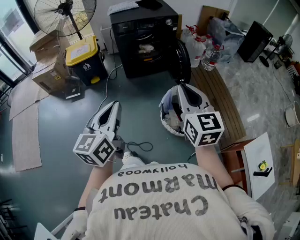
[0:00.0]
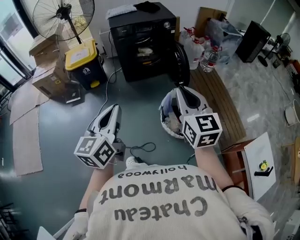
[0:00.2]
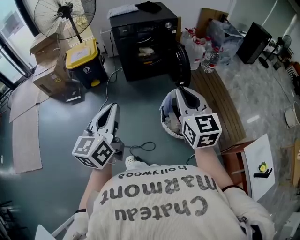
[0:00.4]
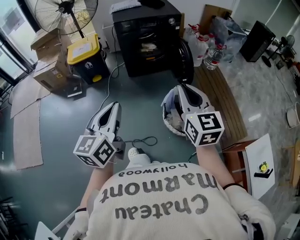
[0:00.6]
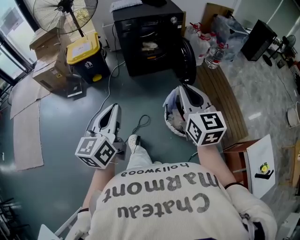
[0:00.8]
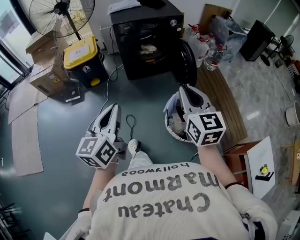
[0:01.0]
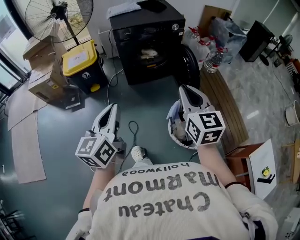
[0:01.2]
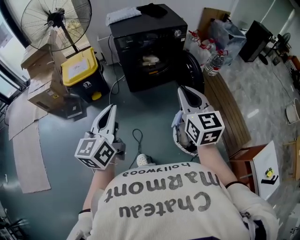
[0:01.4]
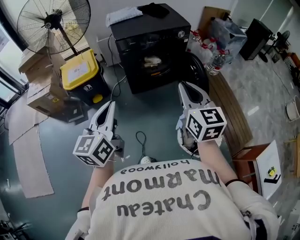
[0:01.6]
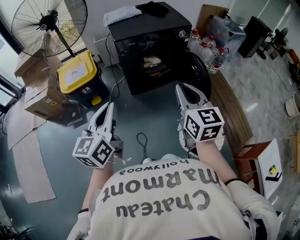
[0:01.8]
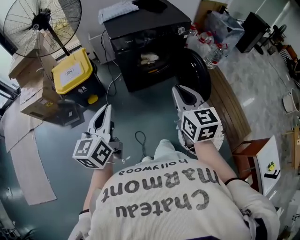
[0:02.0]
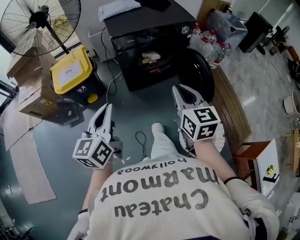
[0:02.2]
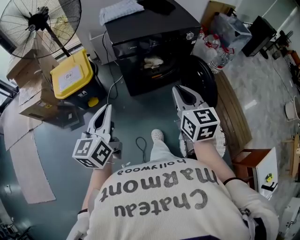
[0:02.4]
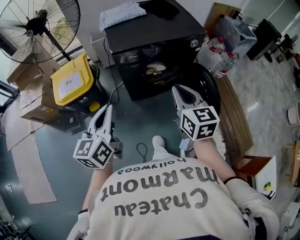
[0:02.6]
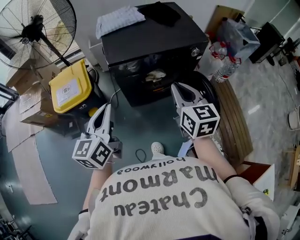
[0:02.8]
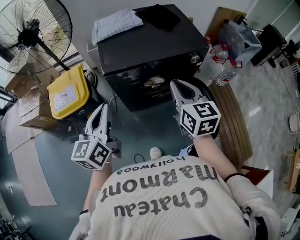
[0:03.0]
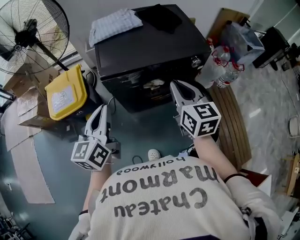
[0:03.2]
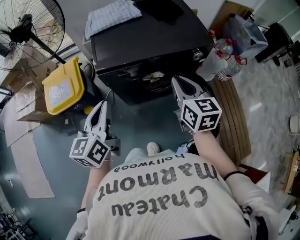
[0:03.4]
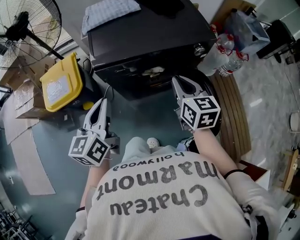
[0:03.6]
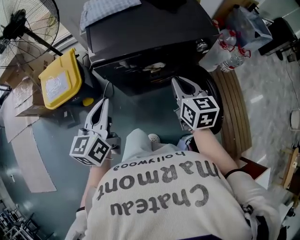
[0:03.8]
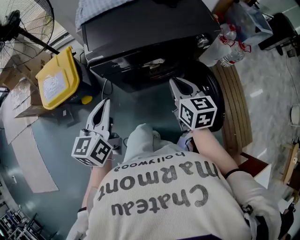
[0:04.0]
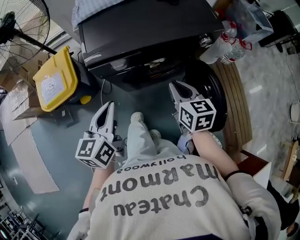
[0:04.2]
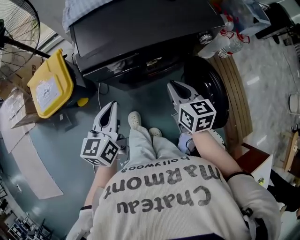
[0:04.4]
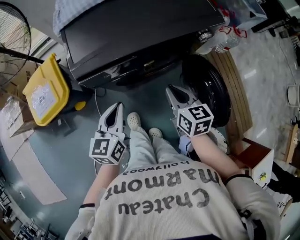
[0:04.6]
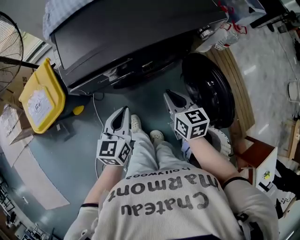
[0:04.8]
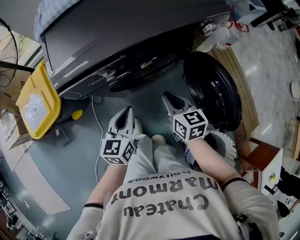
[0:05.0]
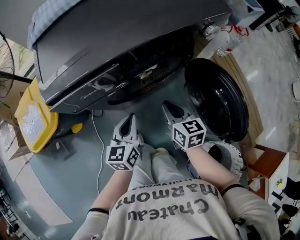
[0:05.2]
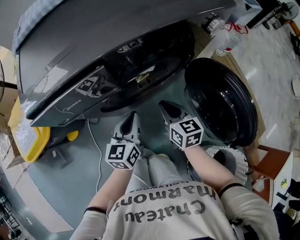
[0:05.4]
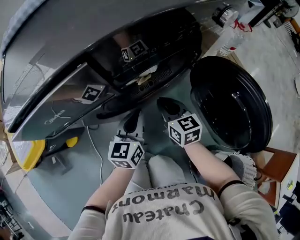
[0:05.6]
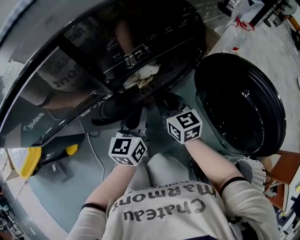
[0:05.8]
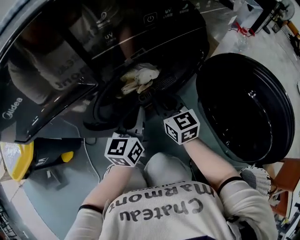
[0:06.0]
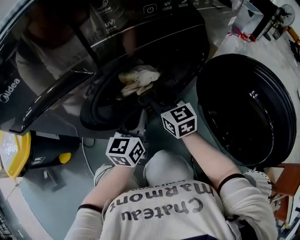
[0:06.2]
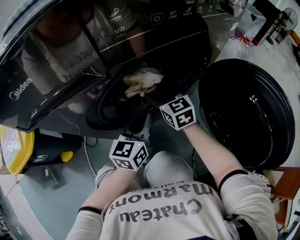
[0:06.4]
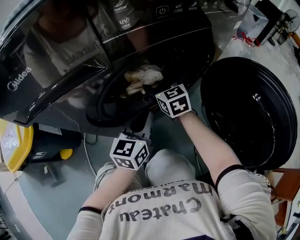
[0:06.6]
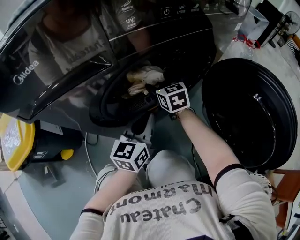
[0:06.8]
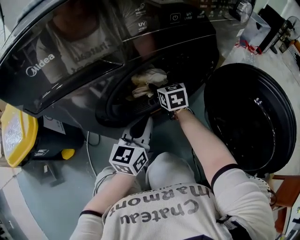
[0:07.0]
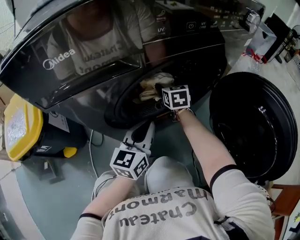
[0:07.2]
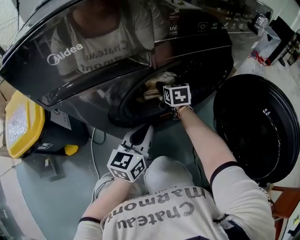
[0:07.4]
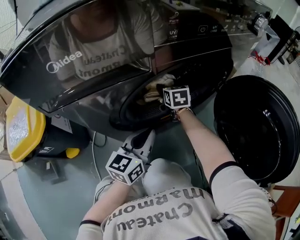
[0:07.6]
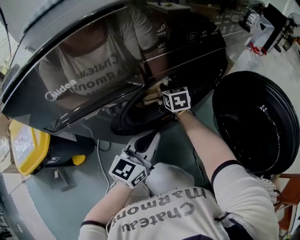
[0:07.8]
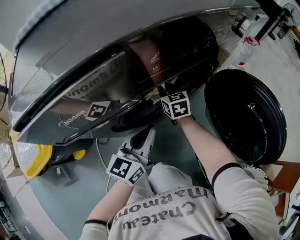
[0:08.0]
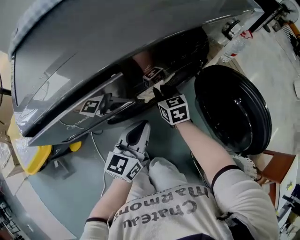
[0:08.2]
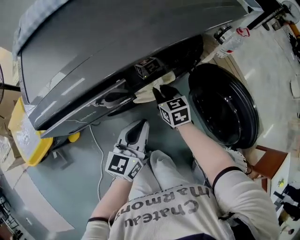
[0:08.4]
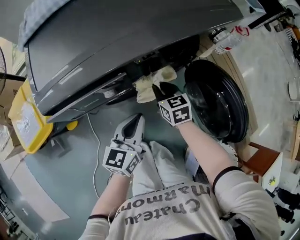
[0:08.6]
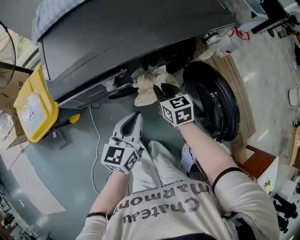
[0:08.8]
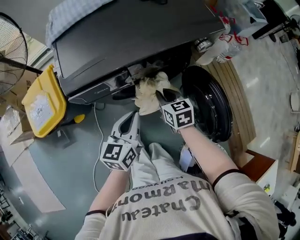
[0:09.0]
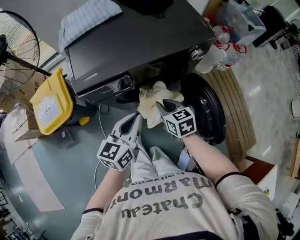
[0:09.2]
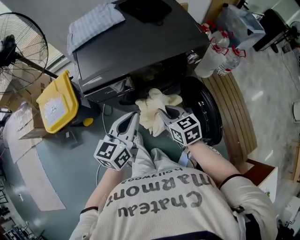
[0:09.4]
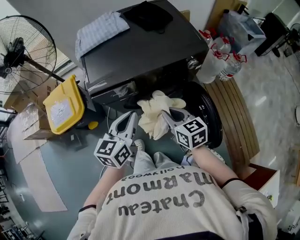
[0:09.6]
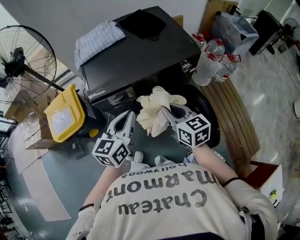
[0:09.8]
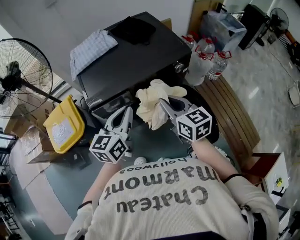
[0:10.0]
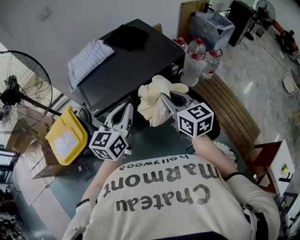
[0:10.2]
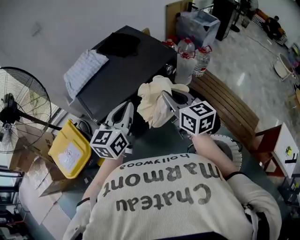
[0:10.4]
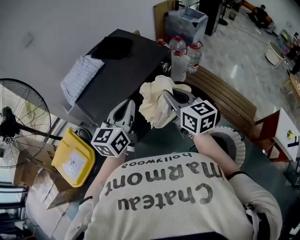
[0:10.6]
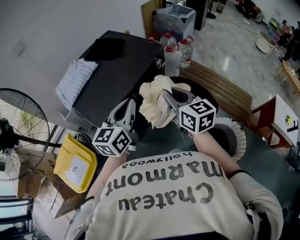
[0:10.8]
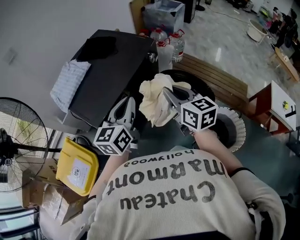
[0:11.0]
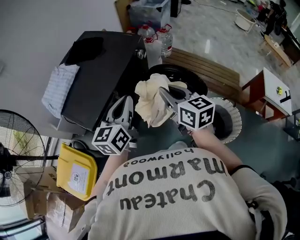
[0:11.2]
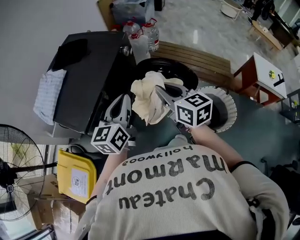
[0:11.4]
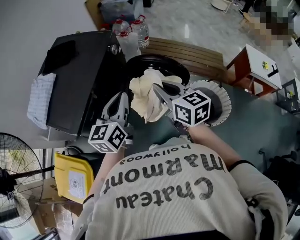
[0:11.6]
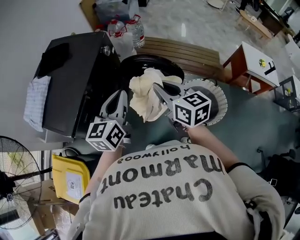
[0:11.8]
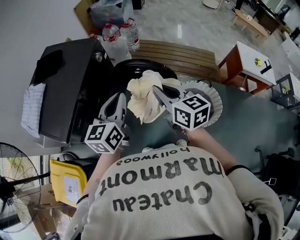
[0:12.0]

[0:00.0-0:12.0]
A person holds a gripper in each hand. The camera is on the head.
0:00.0 to 0:01.6: The two grippers go approximately 30 cm forward and to the left.
0:01.6 to 0:03.0: Both grippers travel together forward, some 35 cm.
0:03.0 to 0:04.4: The left gripper shifts approximately 15 cm downward and forward, while the right gripper goes roughly 20 cm downward.
0:04.4 to 0:06.0: The left gripper is displaced downward and forward by approximately 40 cm. The right gripper shifts roughly 35 cm downward, and swivels approximately 20 degrees.
0:06.0 to 0:07.6: The right gripper goes approximately 15 cm forward and downward, and opens. Meanwhile the left gripper moves backward, approximately 5 cm.
0:07.6 to 0:09.0: The left gripper is displaced upward by approximately 30 cm, while the right gripper moves upward and backward, roughly 35 cm, and closes its fingers.
0:09.0 to 0:10.4: Both grippers move upward, approximately 30 cm. The right gripper changes its angle by roughly 30 degrees. The left gripper swivels approximately 20 degrees.
0:10.4 to 0:12.0: The left gripper changes place by roughly 20 cm, and swivels approximately 30 degrees. The right gripper changes place by some 25 cm, and rotates roughly 30 degrees.

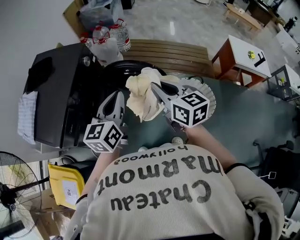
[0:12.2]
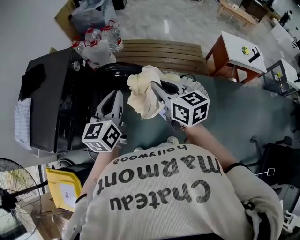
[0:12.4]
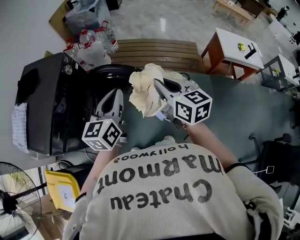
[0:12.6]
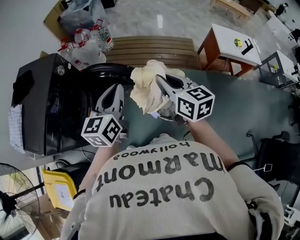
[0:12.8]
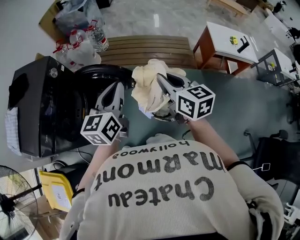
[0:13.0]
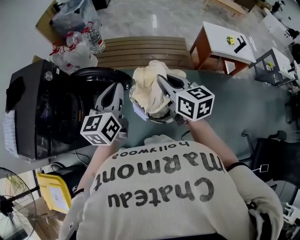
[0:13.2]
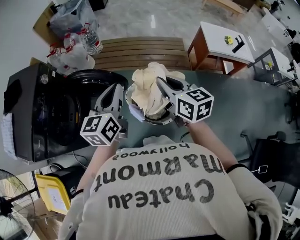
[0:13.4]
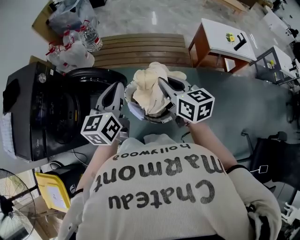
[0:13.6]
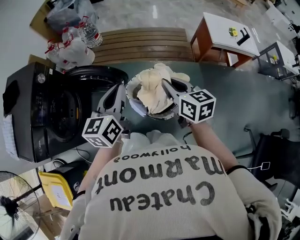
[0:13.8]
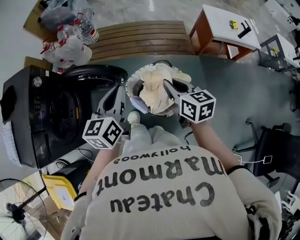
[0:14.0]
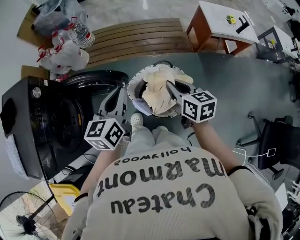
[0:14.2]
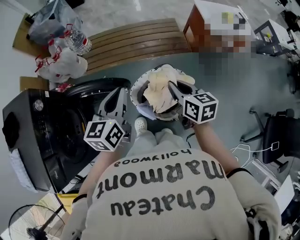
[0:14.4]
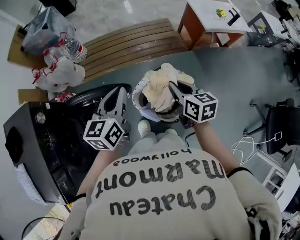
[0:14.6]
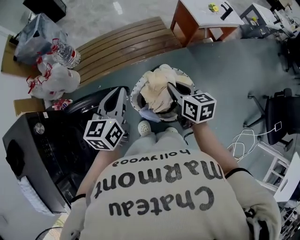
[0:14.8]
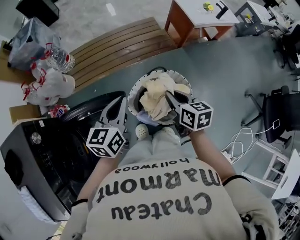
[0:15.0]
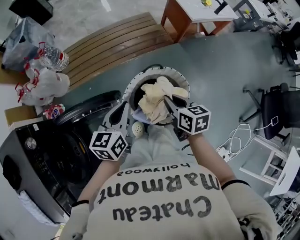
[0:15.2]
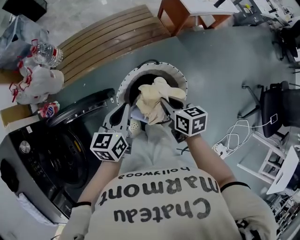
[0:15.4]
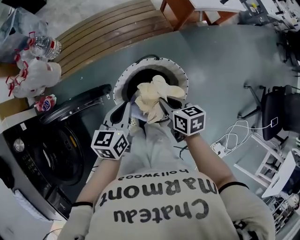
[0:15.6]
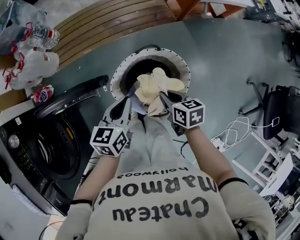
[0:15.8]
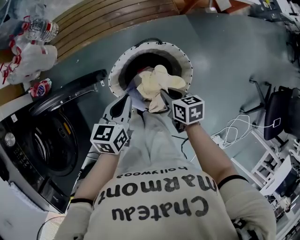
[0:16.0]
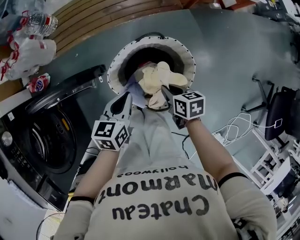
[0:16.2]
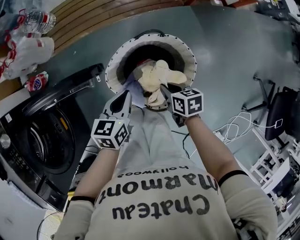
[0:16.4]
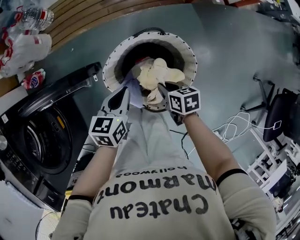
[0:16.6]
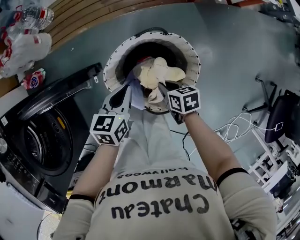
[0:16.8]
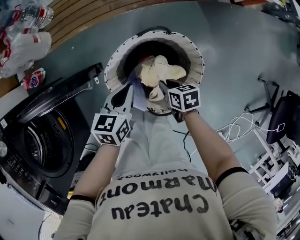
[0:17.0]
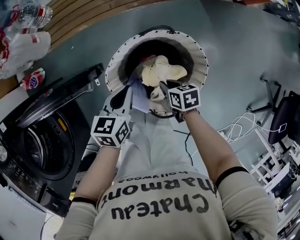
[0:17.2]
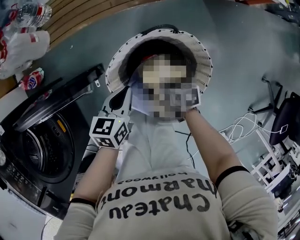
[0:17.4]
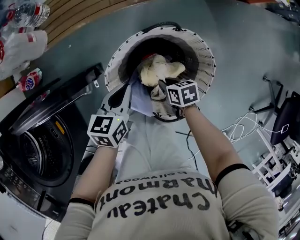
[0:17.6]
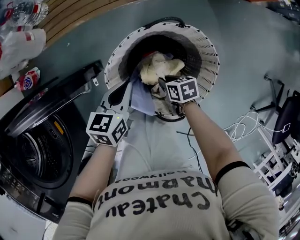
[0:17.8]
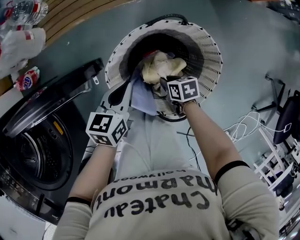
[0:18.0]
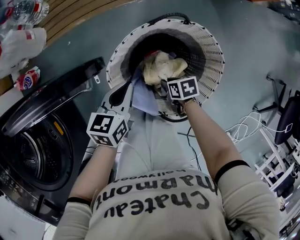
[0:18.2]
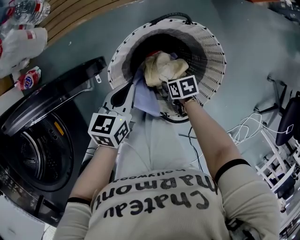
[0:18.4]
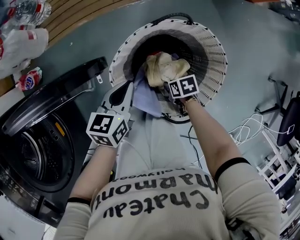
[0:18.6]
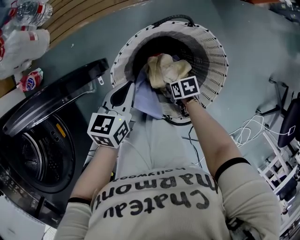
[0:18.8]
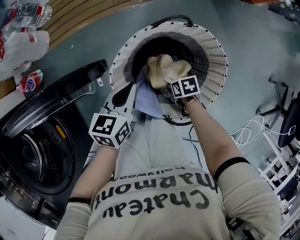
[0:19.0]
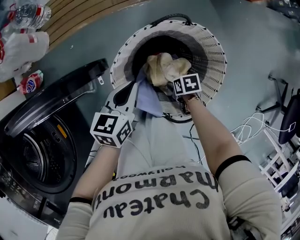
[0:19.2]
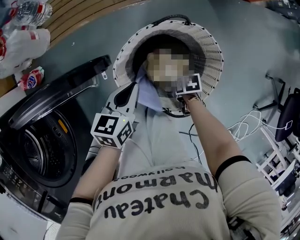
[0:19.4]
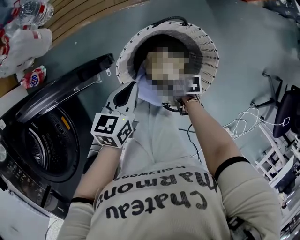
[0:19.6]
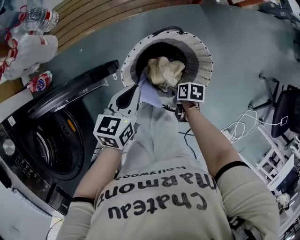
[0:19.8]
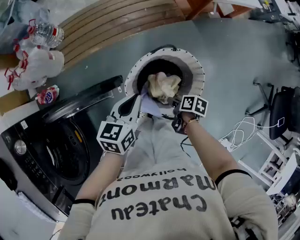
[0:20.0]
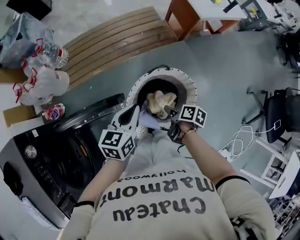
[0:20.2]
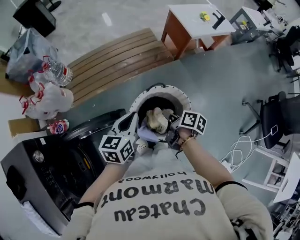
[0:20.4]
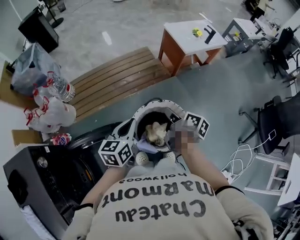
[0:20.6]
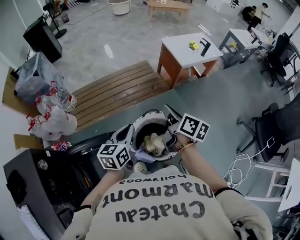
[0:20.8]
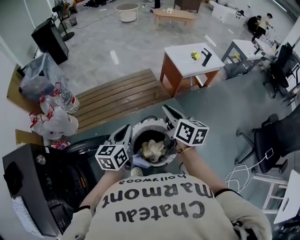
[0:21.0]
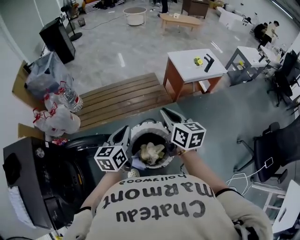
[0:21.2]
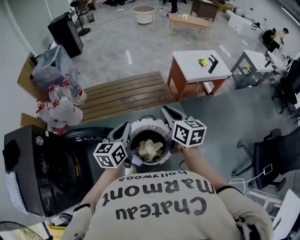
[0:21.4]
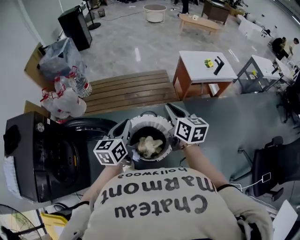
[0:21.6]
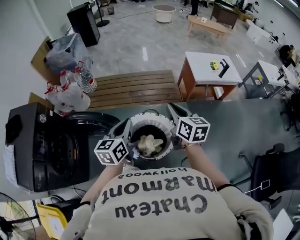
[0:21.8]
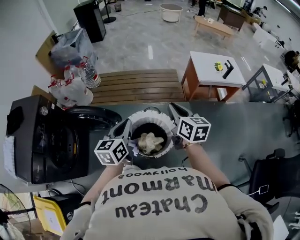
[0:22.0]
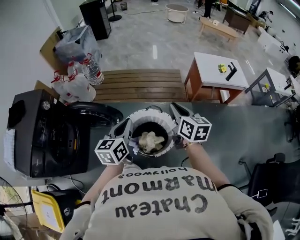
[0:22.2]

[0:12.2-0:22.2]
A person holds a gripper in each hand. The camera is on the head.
0:12.2 to 0:13.6: The two grippers go some 30 cm to the right.
0:13.6 to 0:15.0: The left gripper ends up roughly 15 cm from where it was, and changes its angle by roughly 30 degrees. Meanwhile the right gripper moves downward, approximately 15 cm, and turns by some 30 degrees.
0:15.0 to 0:16.4: Both grippers move downward, roughly 25 cm. The left gripper changes its angle by about 20 degrees, while the right gripper changes its angle by roughly 30 degrees.
0:16.4 to 0:18.0: The right gripper travels downward by approximately 20 cm. The left gripper moves downward, some 10 cm.
0:18.0 to 0:19.4: The right gripper changes place by roughly 5 cm, and opens its fingers.
0:19.4 to 0:20.8: The left gripper shifts approximately 30 cm upward, while the right gripper goes roughly 60 cm upward, angles its fingers upward, by approximately 50 degrees, and closes its fingers.
0:20.8 to 0:22.2: The left gripper travels backward and to the right by about 10 cm, and changes its angle by roughly 30 degrees; the right gripper is displaced to the right by approximately 10 cm, and changes its angle by roughly 40 degrees.

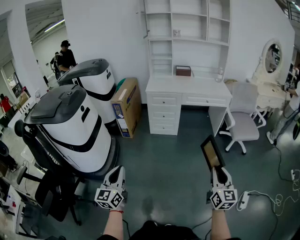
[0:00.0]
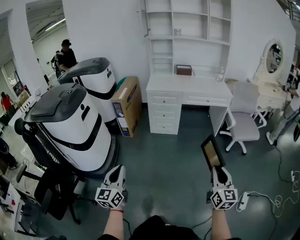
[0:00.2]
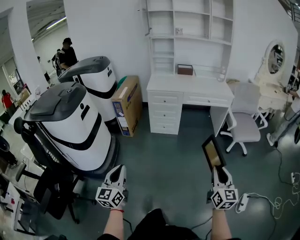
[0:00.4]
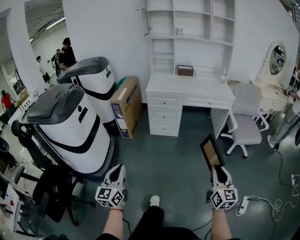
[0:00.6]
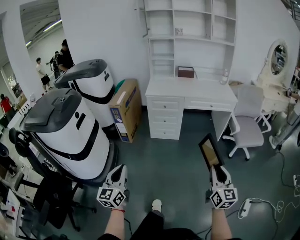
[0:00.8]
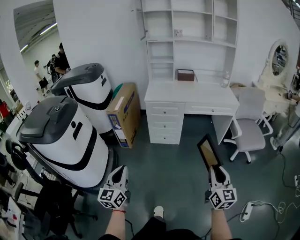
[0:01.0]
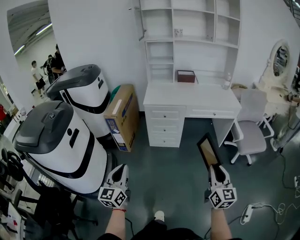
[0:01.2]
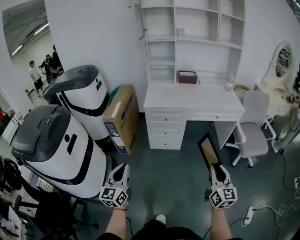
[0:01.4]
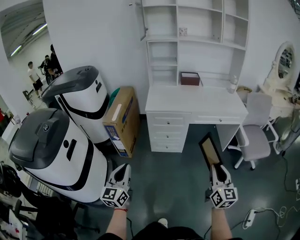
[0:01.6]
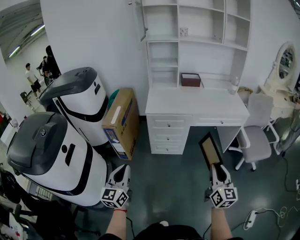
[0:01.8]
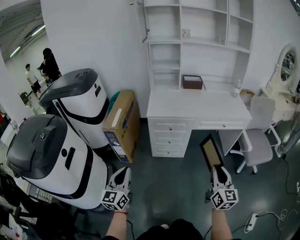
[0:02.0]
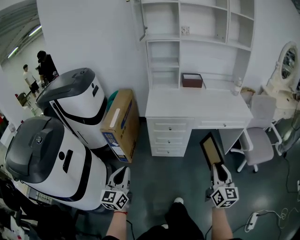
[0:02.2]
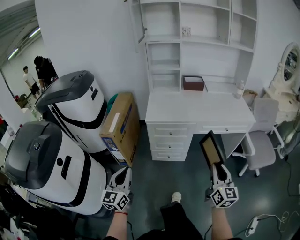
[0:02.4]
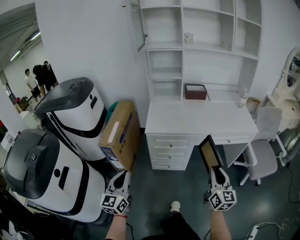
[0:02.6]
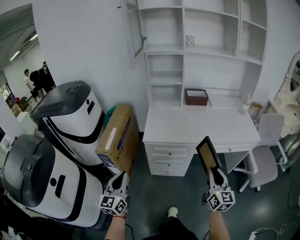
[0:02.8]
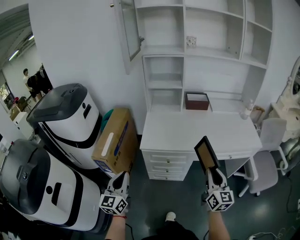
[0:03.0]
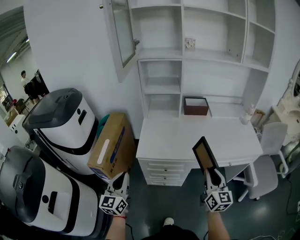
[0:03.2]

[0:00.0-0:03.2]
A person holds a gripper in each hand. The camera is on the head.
0:00.0 to 0:01.6: The two grippers go about 35 cm forward.
0:01.6 to 0:03.2: Both grippers travel together forward, some 40 cm.
